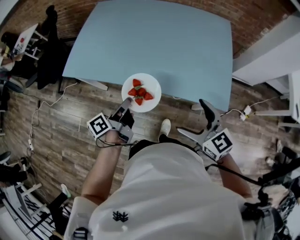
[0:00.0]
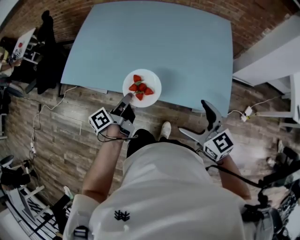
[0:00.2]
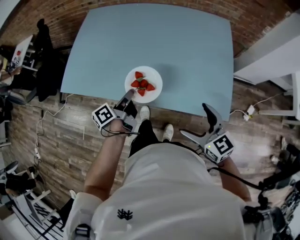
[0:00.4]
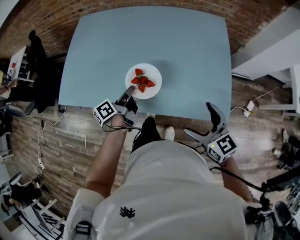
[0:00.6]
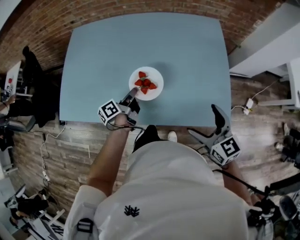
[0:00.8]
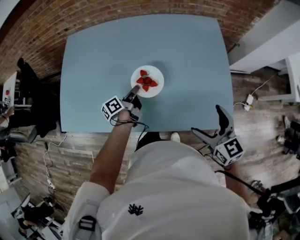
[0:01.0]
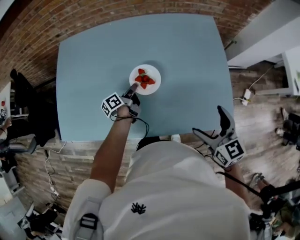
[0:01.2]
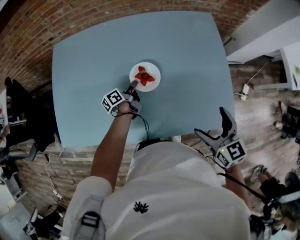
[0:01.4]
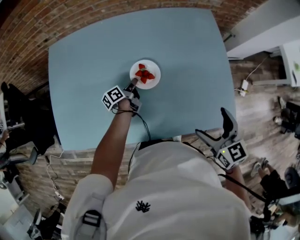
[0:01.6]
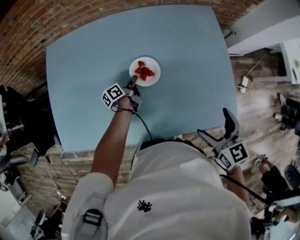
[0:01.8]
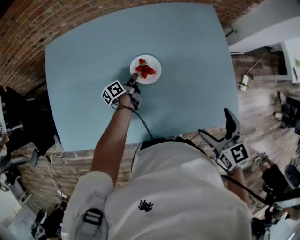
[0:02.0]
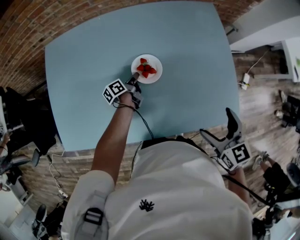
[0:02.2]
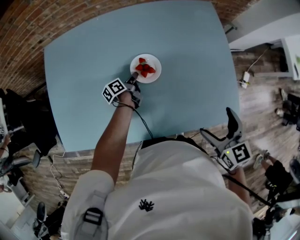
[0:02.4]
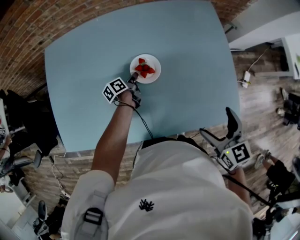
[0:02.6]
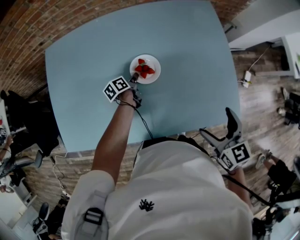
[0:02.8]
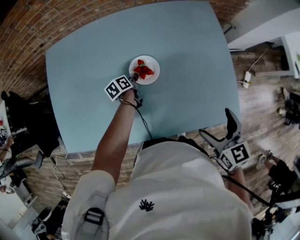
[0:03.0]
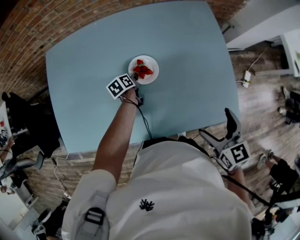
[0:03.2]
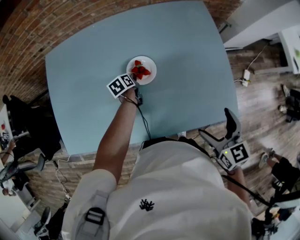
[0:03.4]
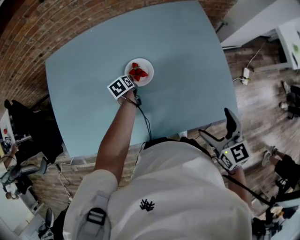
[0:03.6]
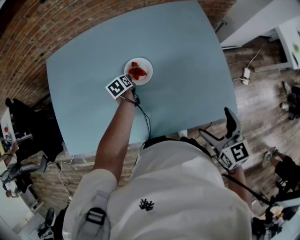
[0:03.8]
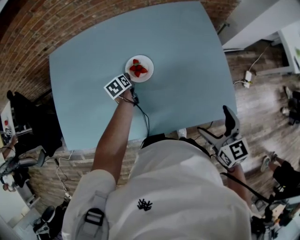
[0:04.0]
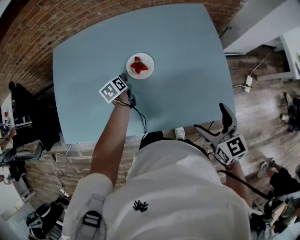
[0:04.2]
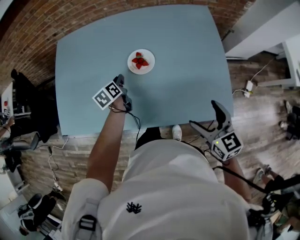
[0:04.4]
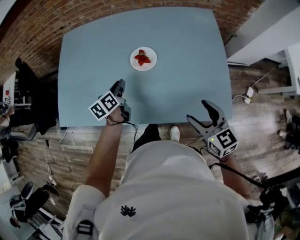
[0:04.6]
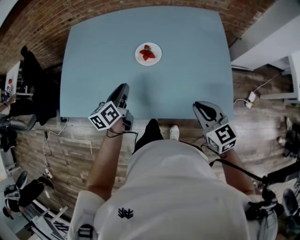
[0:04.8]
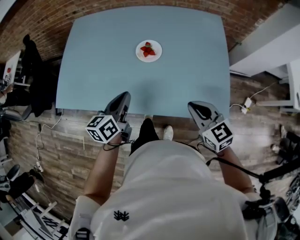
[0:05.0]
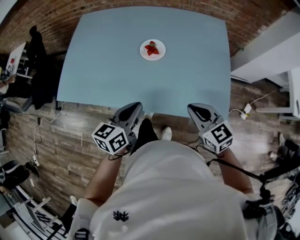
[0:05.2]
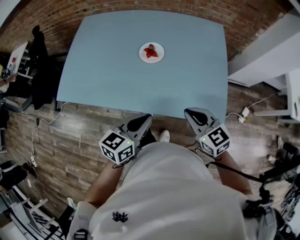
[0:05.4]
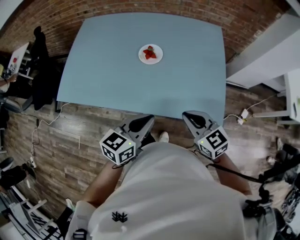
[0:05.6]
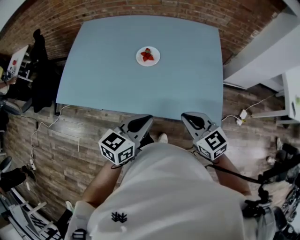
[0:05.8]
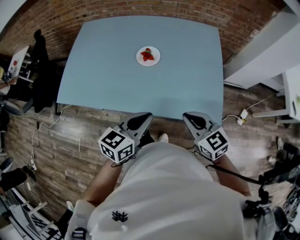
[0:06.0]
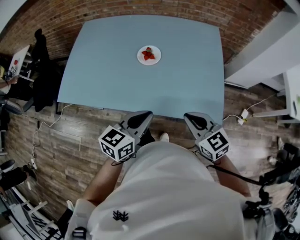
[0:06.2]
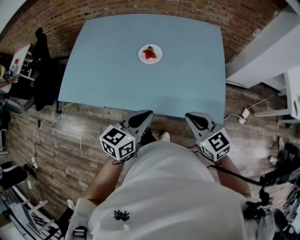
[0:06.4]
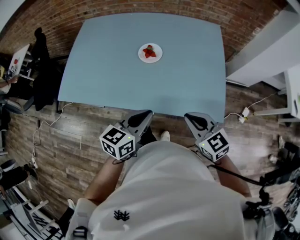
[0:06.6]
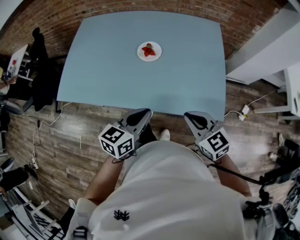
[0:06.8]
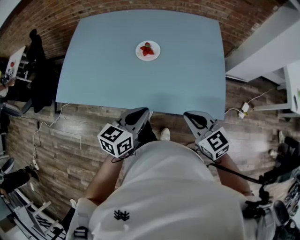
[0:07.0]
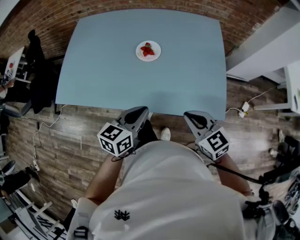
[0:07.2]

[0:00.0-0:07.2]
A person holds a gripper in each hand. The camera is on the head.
0:00.0 to 0:01.4: The right gripper ends up roughly 20 cm from where it was, and rotates roughly 30 degrees, while the left gripper moves approximately 40 cm, and turns by approximately 20 degrees.
0:01.4 to 0:02.8: The left gripper moves about 5 cm.
0:02.8 to 0:04.4: The left gripper moves upward, backward and to the left, approximately 15 cm, and turns by approximately 30 degrees.
0:04.4 to 0:05.8: The left gripper goes roughly 40 cm backward and upward, turns by about 40 degrees, and closes. Meanwhile the right gripper goes about 10 cm backward, changes its angle by roughly 20 degrees, and closes up.
0:05.8 to 0:07.2: The left gripper ends up some 5 cm from where it was.

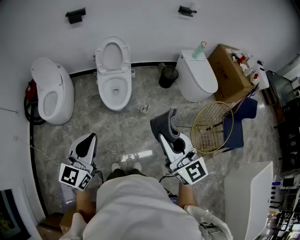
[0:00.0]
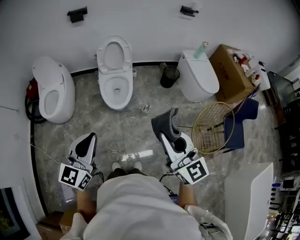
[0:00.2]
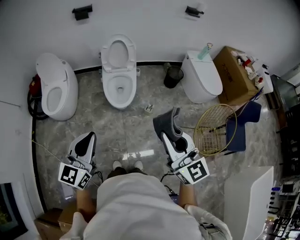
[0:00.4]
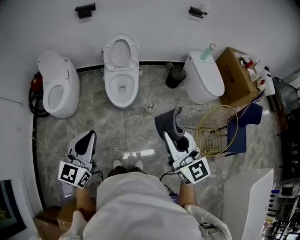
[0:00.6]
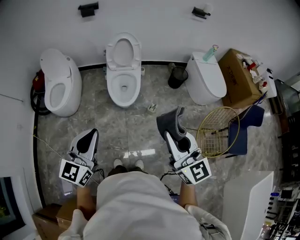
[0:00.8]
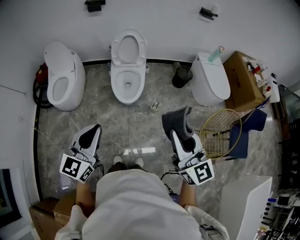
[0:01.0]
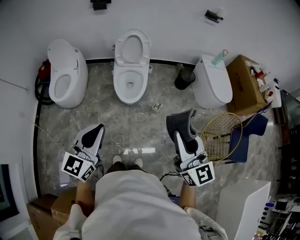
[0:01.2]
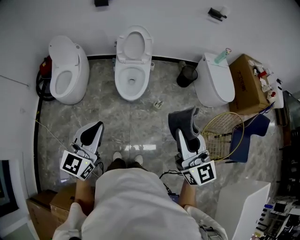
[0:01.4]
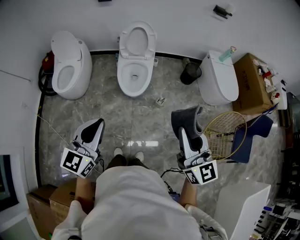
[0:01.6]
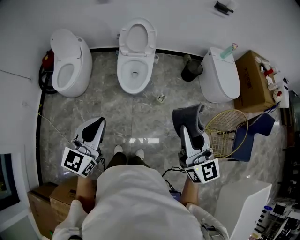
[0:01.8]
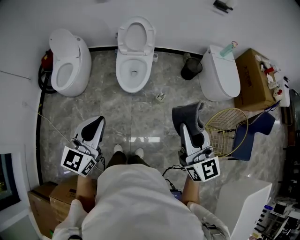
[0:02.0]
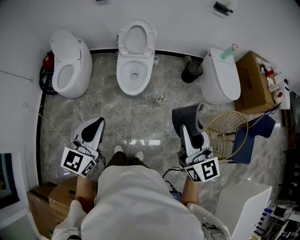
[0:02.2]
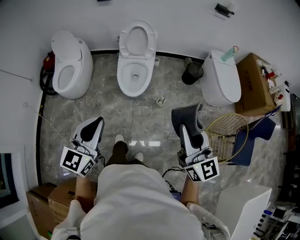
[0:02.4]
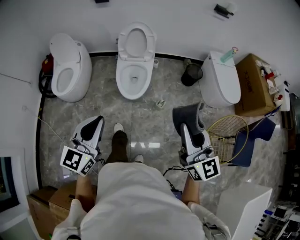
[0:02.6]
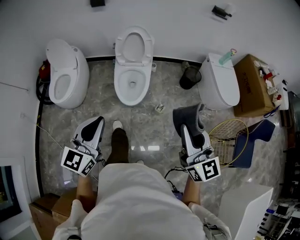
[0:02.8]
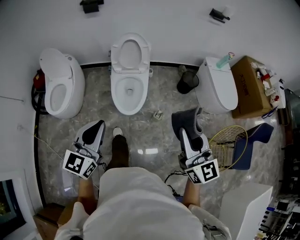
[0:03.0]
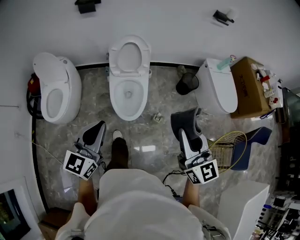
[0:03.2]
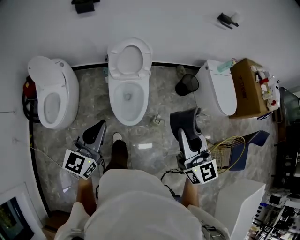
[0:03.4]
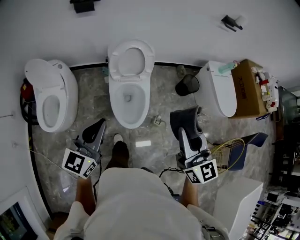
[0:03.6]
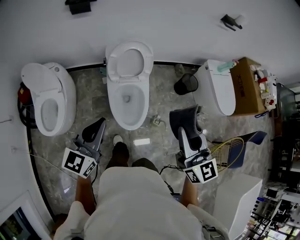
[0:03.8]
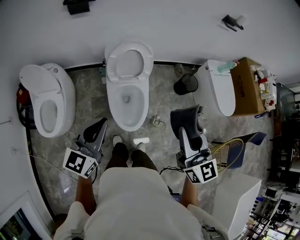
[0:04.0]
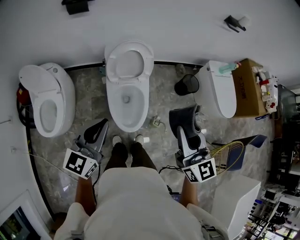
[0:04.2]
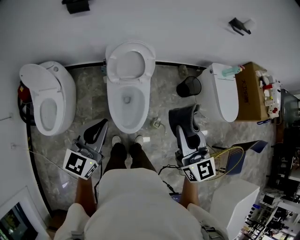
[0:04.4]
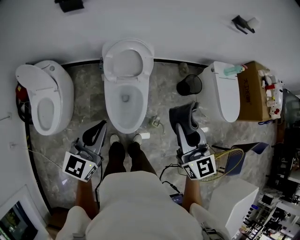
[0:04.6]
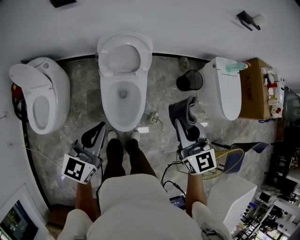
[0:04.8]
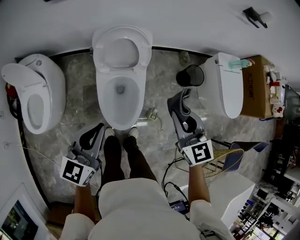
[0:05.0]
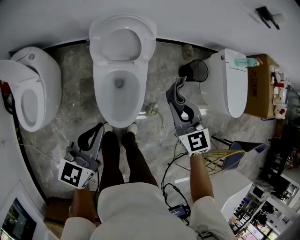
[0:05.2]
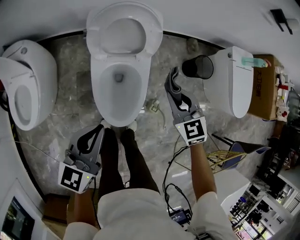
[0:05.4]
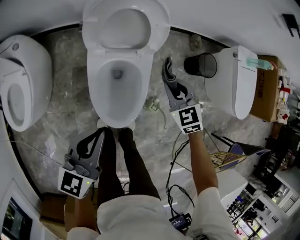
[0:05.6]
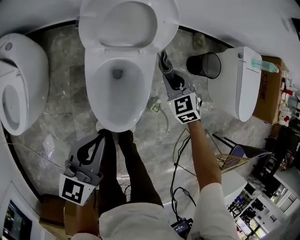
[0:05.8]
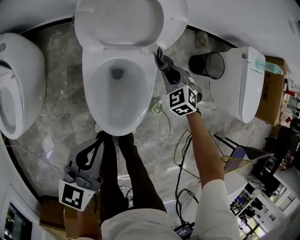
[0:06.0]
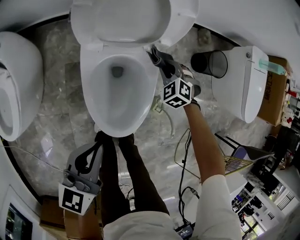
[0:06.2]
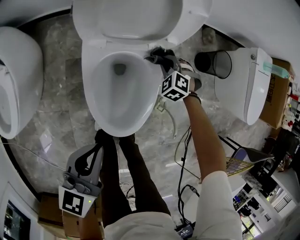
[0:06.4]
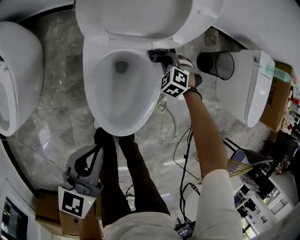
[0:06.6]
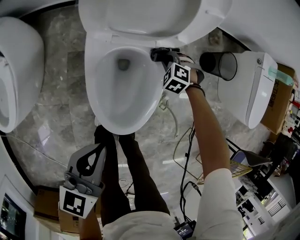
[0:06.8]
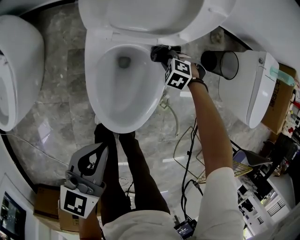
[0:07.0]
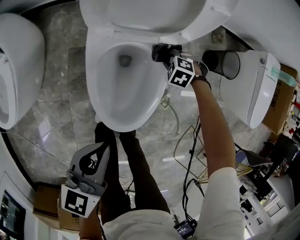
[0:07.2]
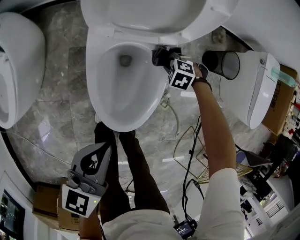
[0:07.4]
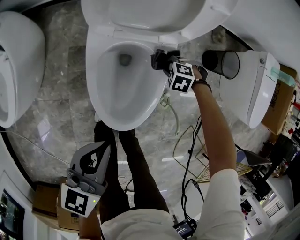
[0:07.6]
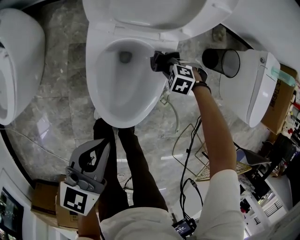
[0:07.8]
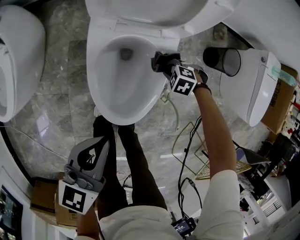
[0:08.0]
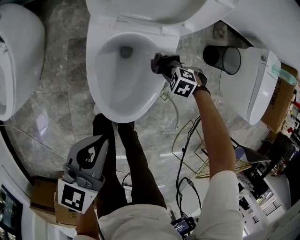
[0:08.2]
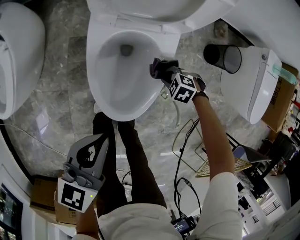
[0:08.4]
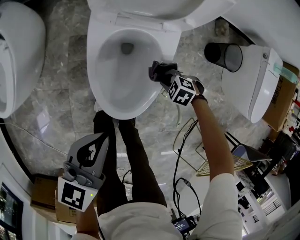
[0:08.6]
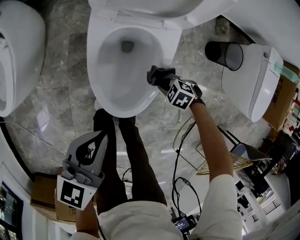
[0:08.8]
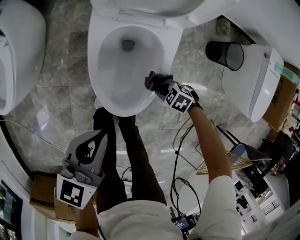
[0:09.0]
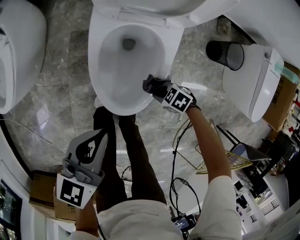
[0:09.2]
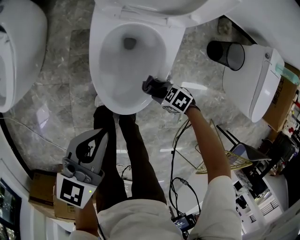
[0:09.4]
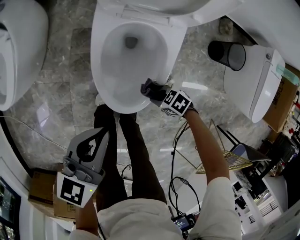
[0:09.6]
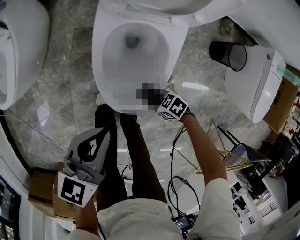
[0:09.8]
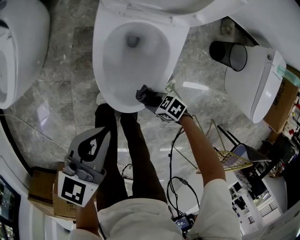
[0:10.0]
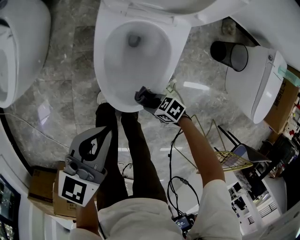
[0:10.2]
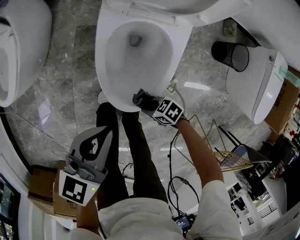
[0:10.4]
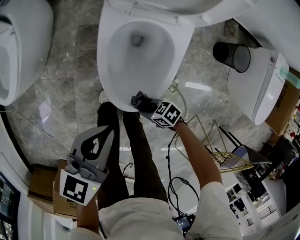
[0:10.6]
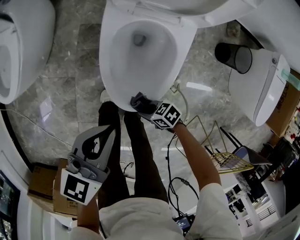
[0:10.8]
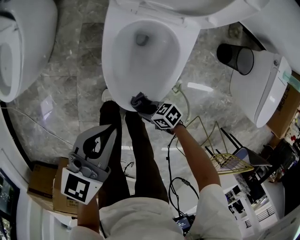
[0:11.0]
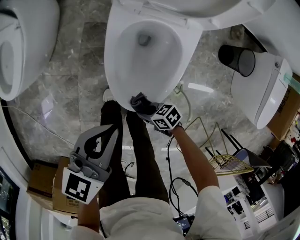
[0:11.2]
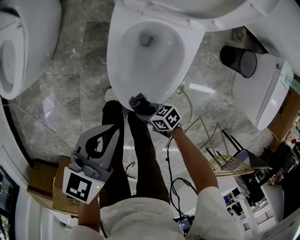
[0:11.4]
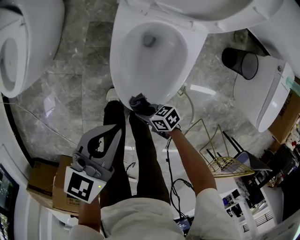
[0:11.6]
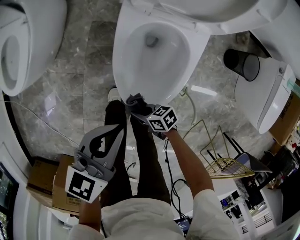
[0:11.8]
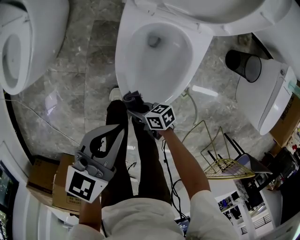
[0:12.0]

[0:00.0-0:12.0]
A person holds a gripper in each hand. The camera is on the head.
0:00.0 to 0:01.6: The right gripper changes place by some 5 cm.
0:01.6 to 0:03.0: Both grippers move forward, about 15 cm.
0:03.0 to 0:04.4: The right gripper heads forward and to the left, covering about 30 cm; the left gripper travels forward by roughly 30 cm.
0:04.4 to 0:06.0: The left gripper goes some 35 cm downward, and rotates about 20 degrees; the right gripper shifts roughly 60 cm downward and forward, and points its fingers roughly 50 degrees further downward.
0:06.0 to 0:07.6: The right gripper travels downward by approximately 15 cm, and angles its fingers downward, by some 30 degrees. Meanwhile the left gripper moves downward, some 5 cm.
0:07.6 to 0:09.0: The right gripper changes place by roughly 15 cm, and rotates approximately 30 degrees.
0:09.0 to 0:10.4: The right gripper shifts by approximately 15 cm, and rotates roughly 30 degrees.
0:10.4 to 0:12.0: The right gripper shifts by roughly 15 cm, and swivels approximately 30 degrees.

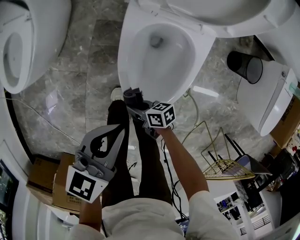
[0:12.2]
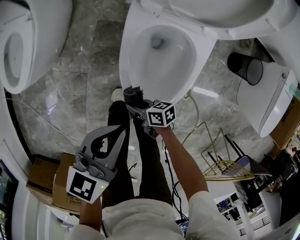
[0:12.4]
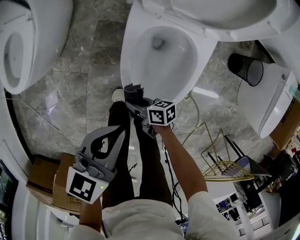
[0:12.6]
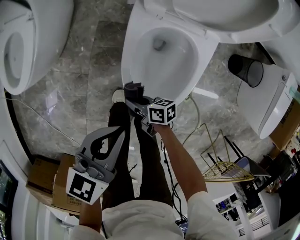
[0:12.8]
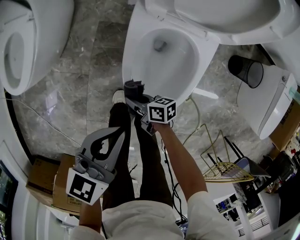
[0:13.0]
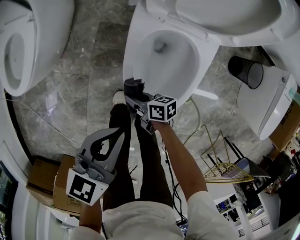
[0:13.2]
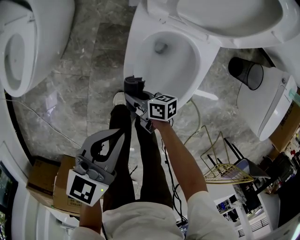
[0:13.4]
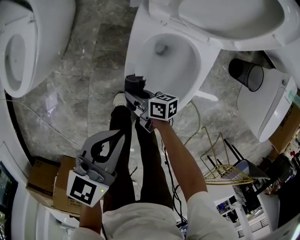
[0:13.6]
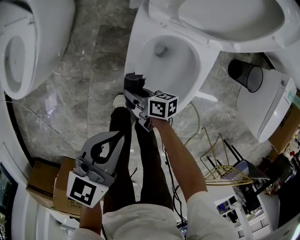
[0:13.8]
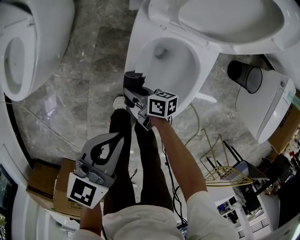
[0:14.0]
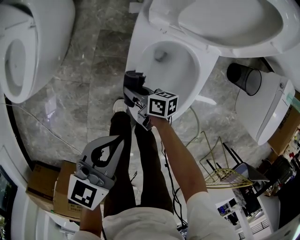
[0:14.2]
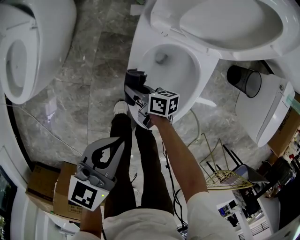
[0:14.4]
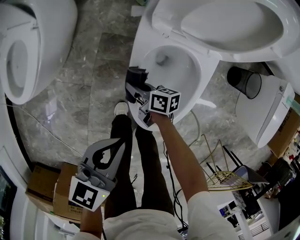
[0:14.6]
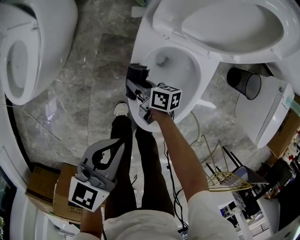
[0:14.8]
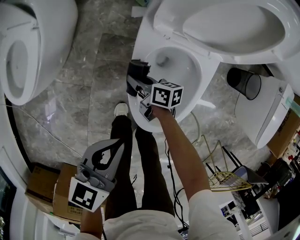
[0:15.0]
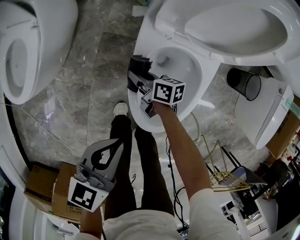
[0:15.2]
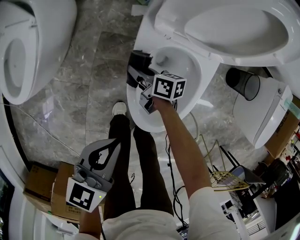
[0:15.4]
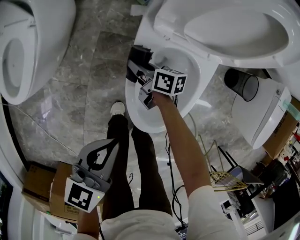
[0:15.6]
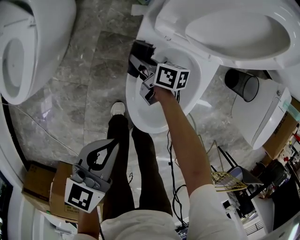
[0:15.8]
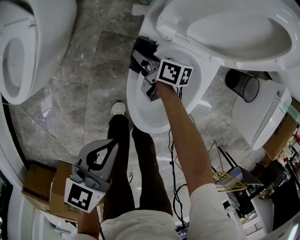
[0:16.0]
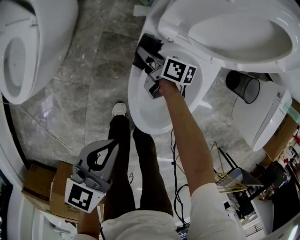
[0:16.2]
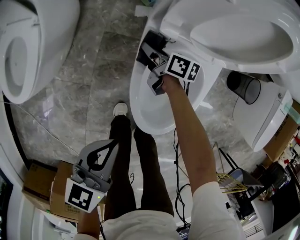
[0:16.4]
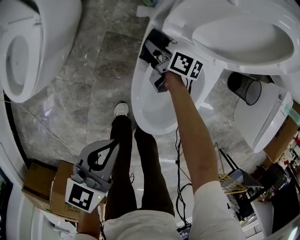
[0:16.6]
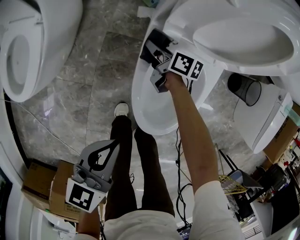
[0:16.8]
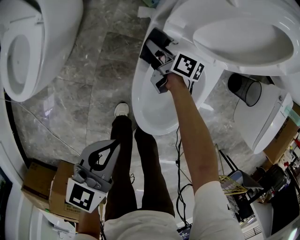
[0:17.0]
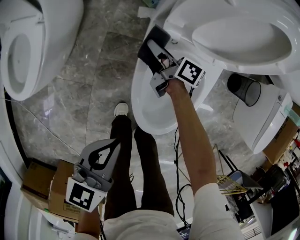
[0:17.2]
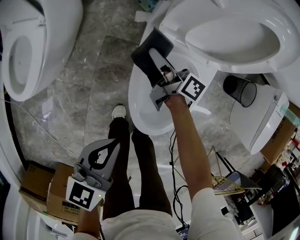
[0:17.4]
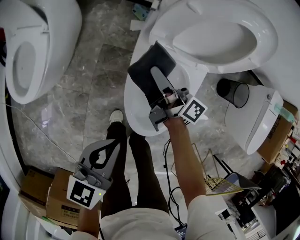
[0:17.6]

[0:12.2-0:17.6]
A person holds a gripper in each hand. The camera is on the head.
0:12.2 to 0:13.6: The right gripper moves approximately 10 cm.
0:13.6 to 0:15.0: The right gripper goes roughly 10 cm forward.
0:15.0 to 0:16.2: The right gripper goes some 10 cm forward.
0:16.2 to 0:17.6: The left gripper goes approximately 5 cm upward. The right gripper travels upward by some 20 cm, and changes its angle by approximately 30 degrees.
